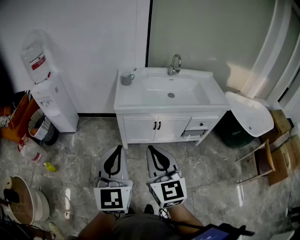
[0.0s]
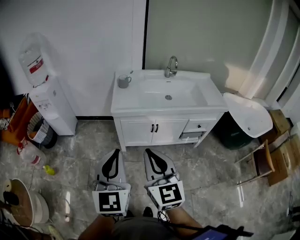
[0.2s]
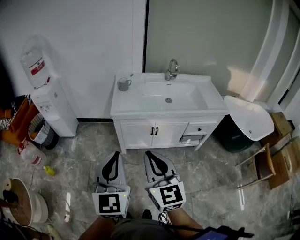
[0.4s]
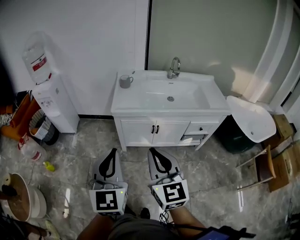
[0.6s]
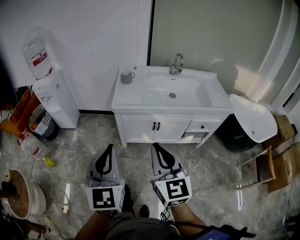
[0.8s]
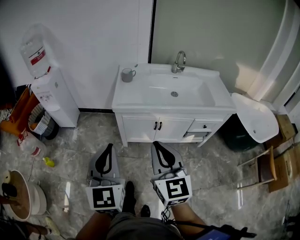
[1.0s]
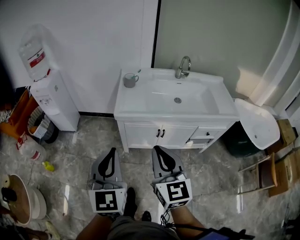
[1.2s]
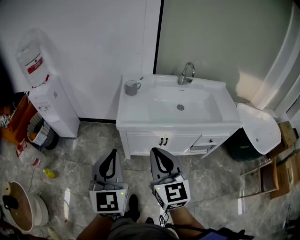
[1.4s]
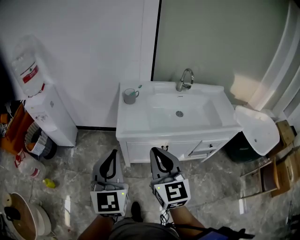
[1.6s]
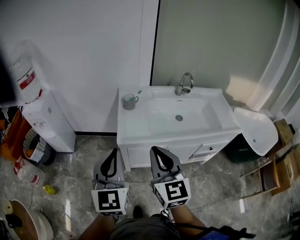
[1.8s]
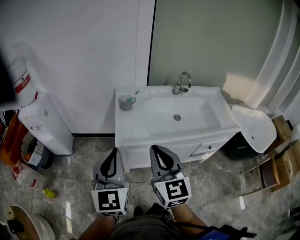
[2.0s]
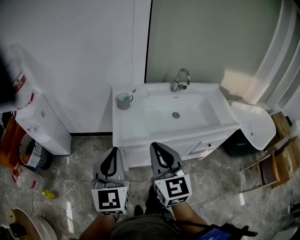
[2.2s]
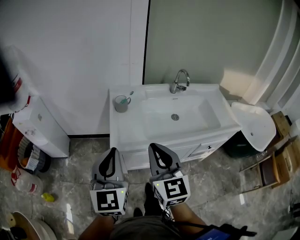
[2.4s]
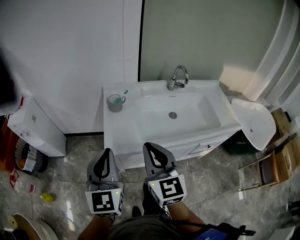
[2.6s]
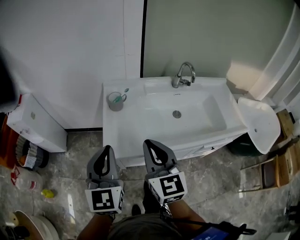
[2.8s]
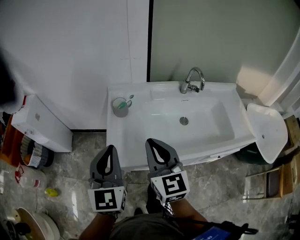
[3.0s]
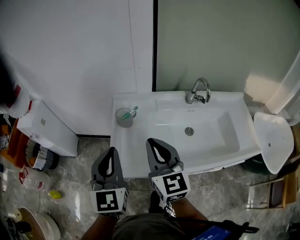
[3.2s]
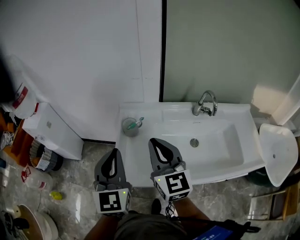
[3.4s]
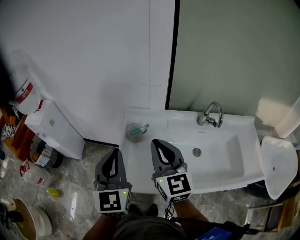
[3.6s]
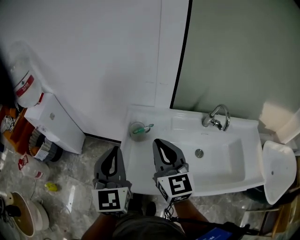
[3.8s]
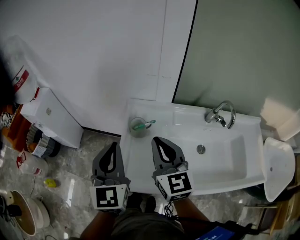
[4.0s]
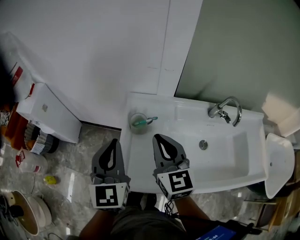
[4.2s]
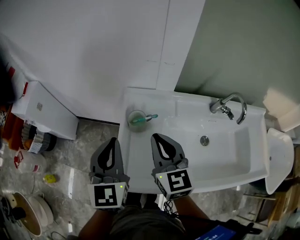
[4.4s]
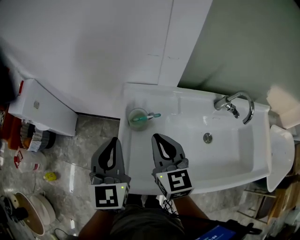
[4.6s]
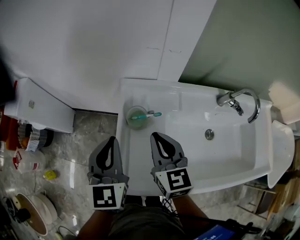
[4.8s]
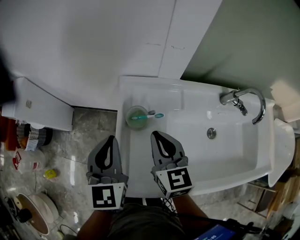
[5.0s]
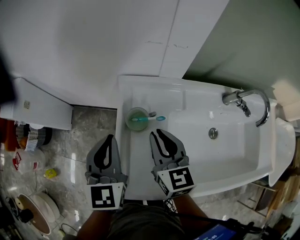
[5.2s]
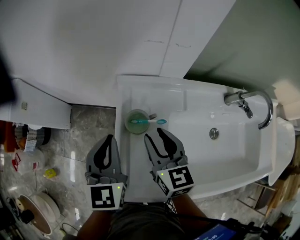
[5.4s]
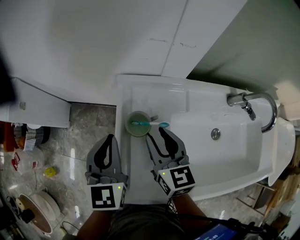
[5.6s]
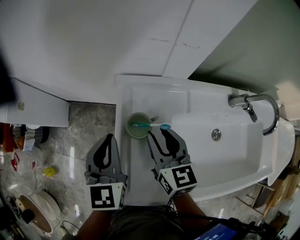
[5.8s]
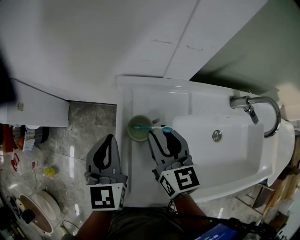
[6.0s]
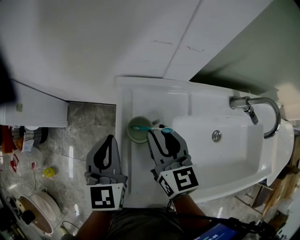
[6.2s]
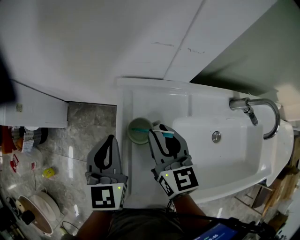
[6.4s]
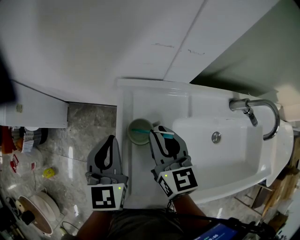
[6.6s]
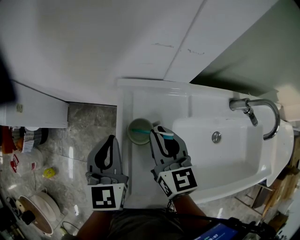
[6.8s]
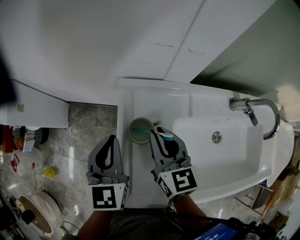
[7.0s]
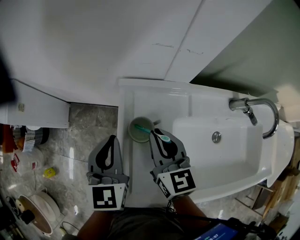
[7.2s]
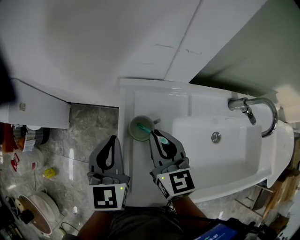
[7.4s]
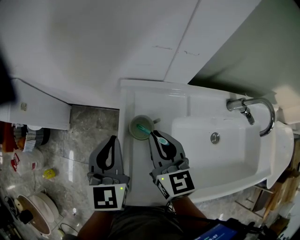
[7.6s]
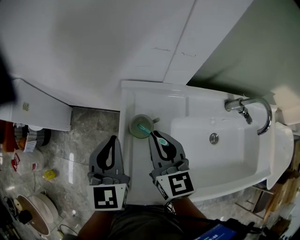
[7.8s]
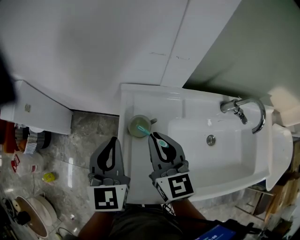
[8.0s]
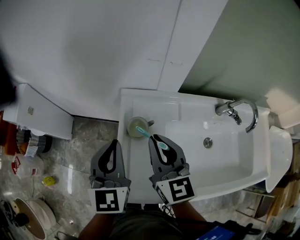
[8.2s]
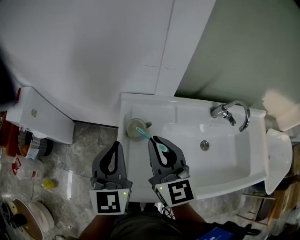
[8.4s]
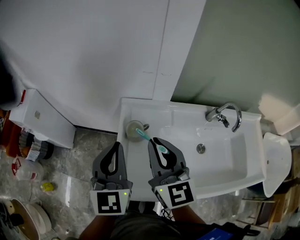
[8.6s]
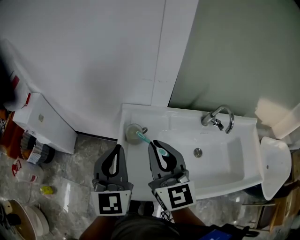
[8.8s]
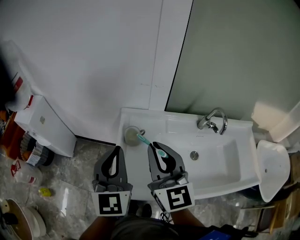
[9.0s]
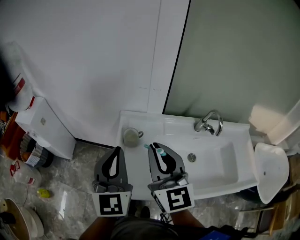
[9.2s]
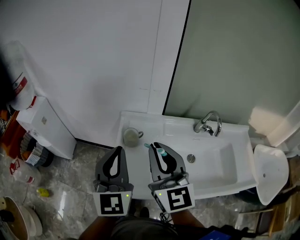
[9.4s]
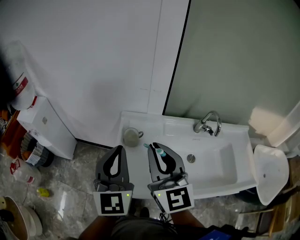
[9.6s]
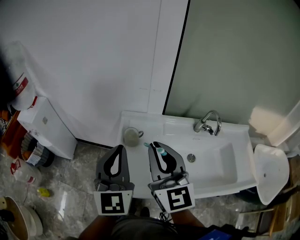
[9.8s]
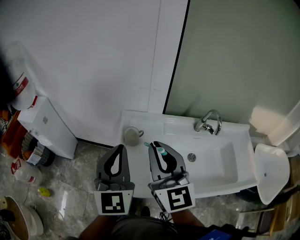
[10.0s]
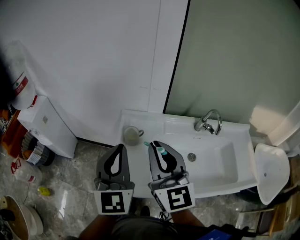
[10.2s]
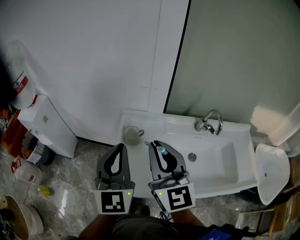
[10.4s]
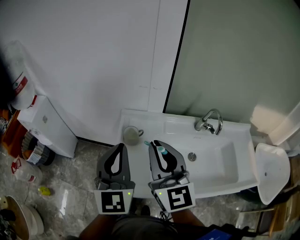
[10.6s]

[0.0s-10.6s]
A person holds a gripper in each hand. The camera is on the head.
0.0s to 1.6s: Both grippers move forward, about 20 cm.
1.6s to 3.0s: Both grippers move forward, approximately 25 cm.
3.0s to 4.6s: Both grippers move forward, some 20 cm.
4.6s to 6.0s: The grippers both shift forward and downward by roughly 10 cm. The right gripper opens its fingers.
6.0s to 7.6s: The right gripper closes its fingers.
7.6s to 9.0s: The grippers both shift upward and backward by roughly 25 cm. The left gripper changes its angle by some 20 degrees. Meanwhile the right gripper swivels about 30 degrees.
9.0s to 10.6s: The grippers make only small movements.

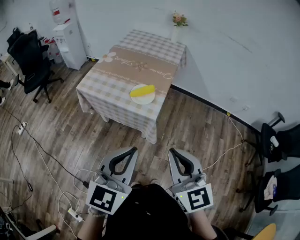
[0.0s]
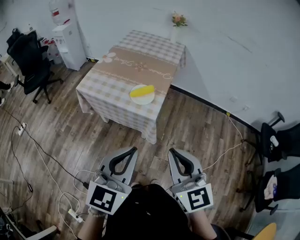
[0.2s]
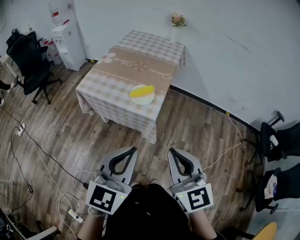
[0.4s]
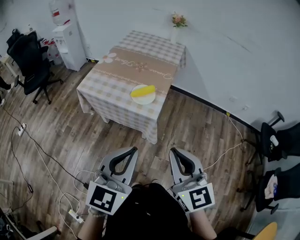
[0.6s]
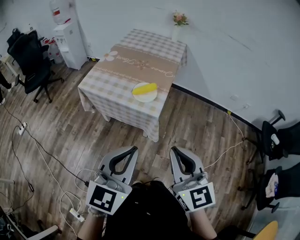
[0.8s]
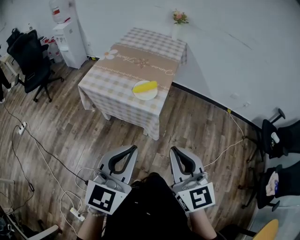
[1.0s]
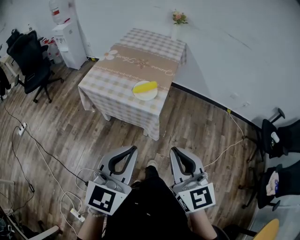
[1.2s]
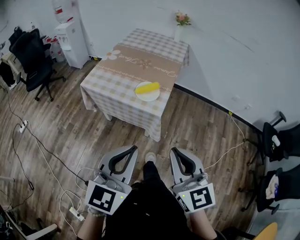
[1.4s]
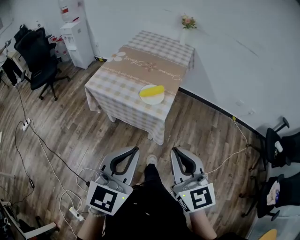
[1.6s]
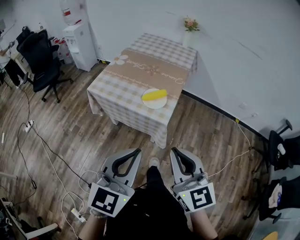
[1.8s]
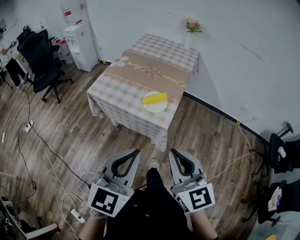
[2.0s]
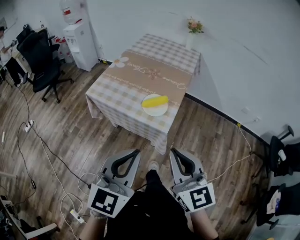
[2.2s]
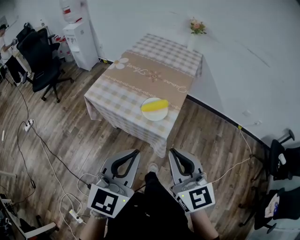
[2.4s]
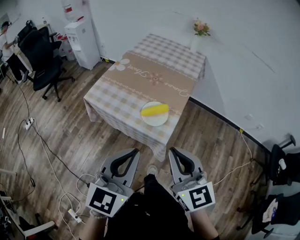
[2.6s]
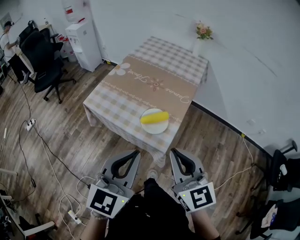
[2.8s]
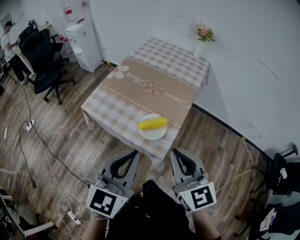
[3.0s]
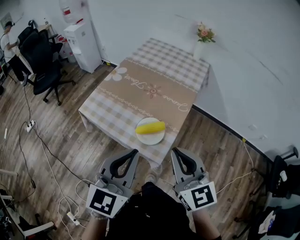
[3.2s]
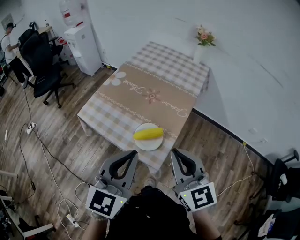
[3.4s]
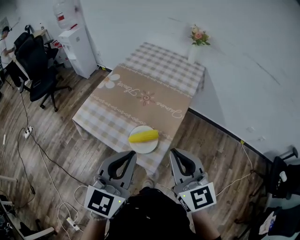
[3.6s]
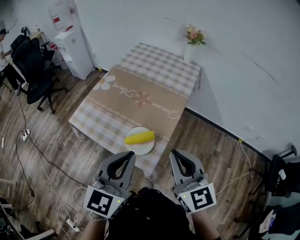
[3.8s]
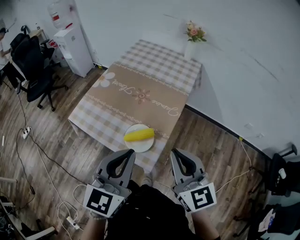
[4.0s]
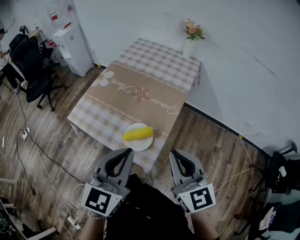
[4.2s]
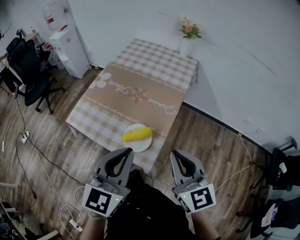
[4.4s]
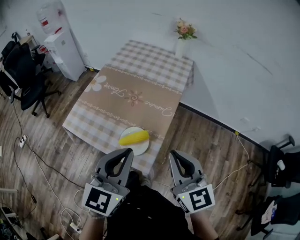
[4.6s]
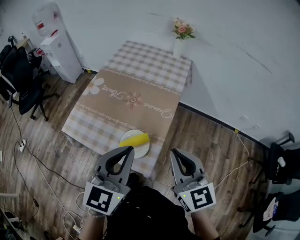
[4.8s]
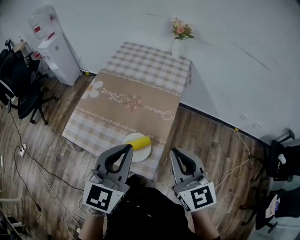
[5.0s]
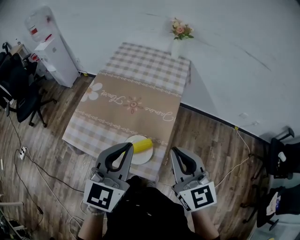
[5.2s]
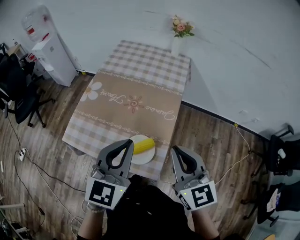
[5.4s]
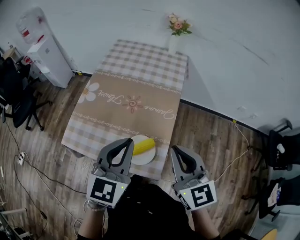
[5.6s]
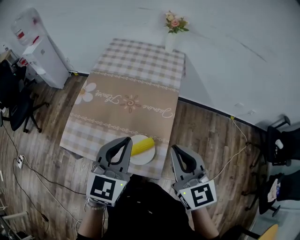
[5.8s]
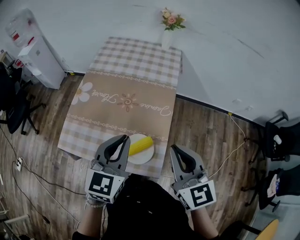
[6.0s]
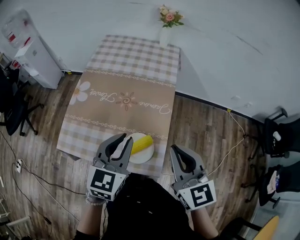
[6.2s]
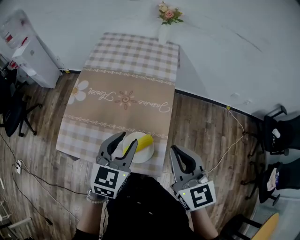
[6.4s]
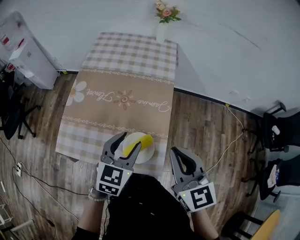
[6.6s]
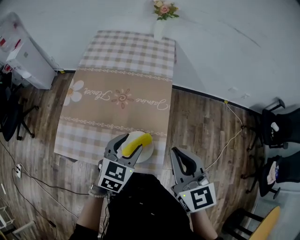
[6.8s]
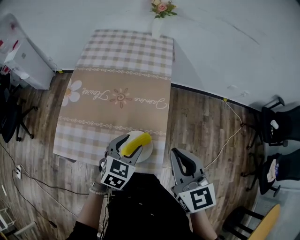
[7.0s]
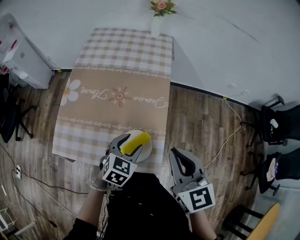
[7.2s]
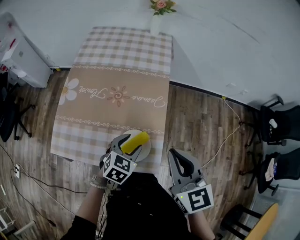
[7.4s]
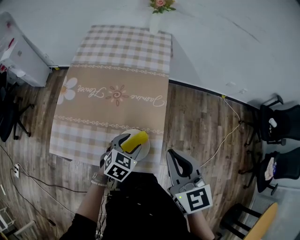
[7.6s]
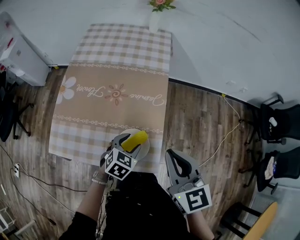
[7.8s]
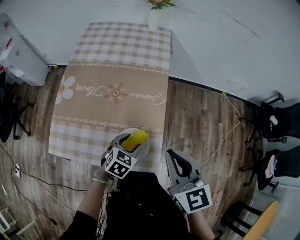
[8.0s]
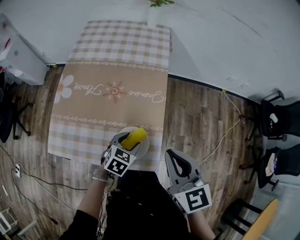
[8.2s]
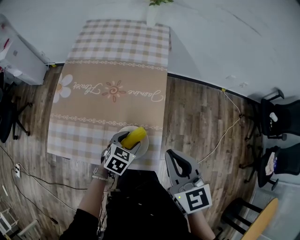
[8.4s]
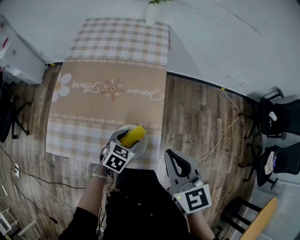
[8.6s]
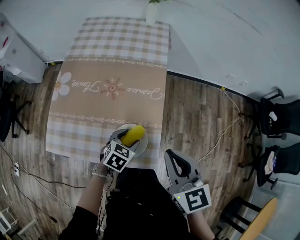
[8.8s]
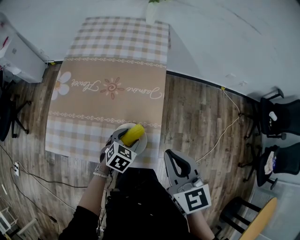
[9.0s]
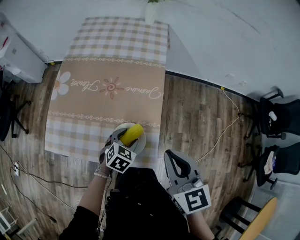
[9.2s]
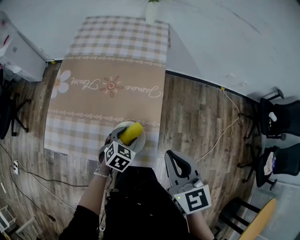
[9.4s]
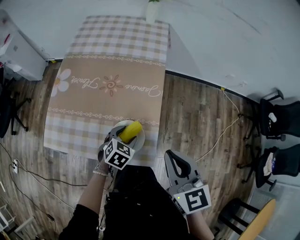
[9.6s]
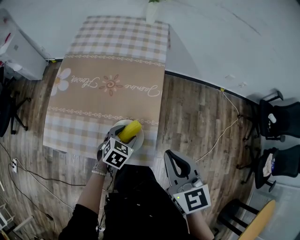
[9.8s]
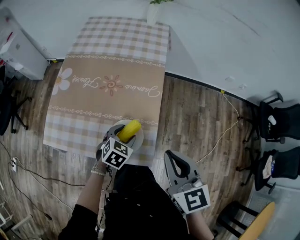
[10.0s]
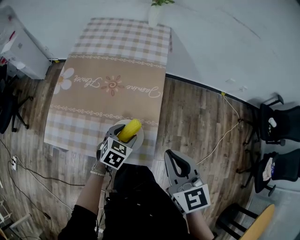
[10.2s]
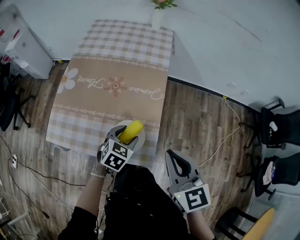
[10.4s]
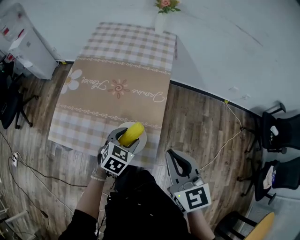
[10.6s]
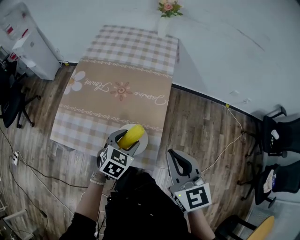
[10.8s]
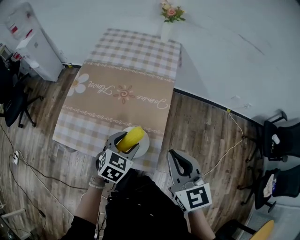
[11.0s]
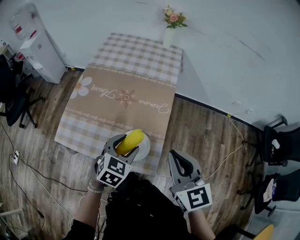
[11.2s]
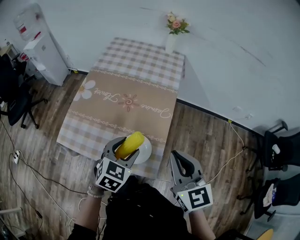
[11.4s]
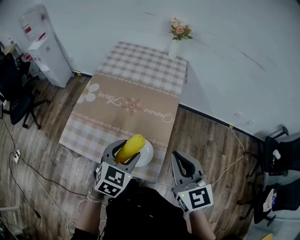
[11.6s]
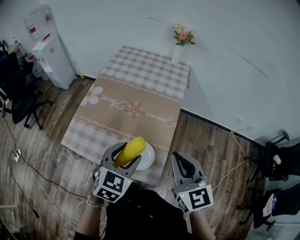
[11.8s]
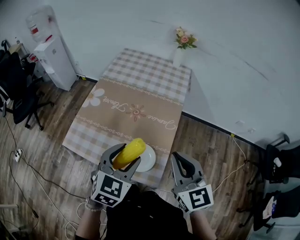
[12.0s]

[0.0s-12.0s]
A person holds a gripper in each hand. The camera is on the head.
0.0s to 1.6s: There are only small adjustments of the grippers.
1.6s to 3.0s: Both grippers move forward, approximately 25 cm.
3.0s to 4.4s: The left gripper travels forward and to the right by roughly 10 cm, while the right gripper heads to the right and forward, covering approximately 10 cm.
4.4s to 6.0s: The left gripper shifts some 15 cm forward and downward. The right gripper is displaced forward by roughly 10 cm.
6.0s to 7.6s: The left gripper shifts about 20 cm downward, changes its angle by some 40 degrees, and opens.
7.6s to 9.0s: The left gripper travels downward by some 5 cm.
9.0s to 10.4s: The grippers make only small movements.
10.4s to 12.0s: The right gripper goes some 5 cm upward; the left gripper shifts some 20 cm upward, and swivels about 20 degrees.

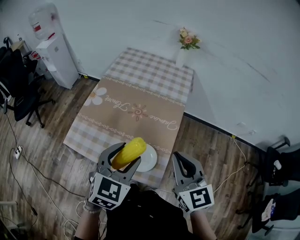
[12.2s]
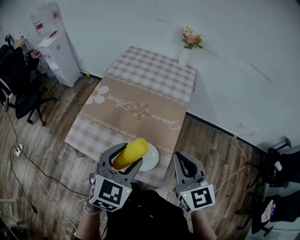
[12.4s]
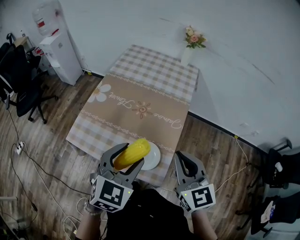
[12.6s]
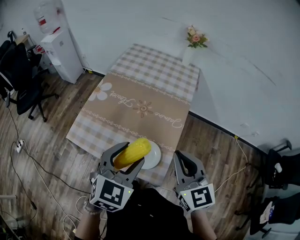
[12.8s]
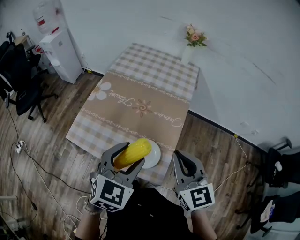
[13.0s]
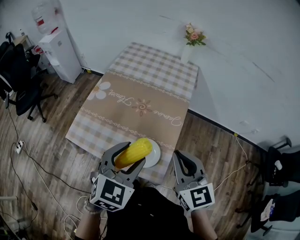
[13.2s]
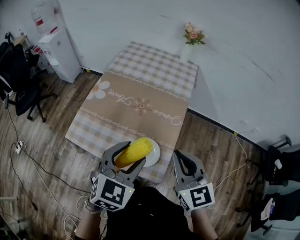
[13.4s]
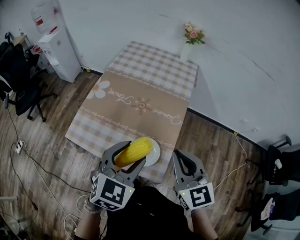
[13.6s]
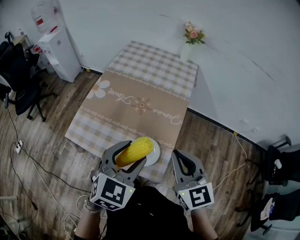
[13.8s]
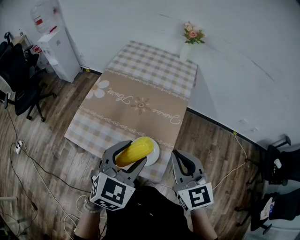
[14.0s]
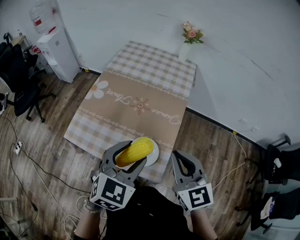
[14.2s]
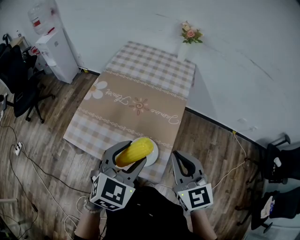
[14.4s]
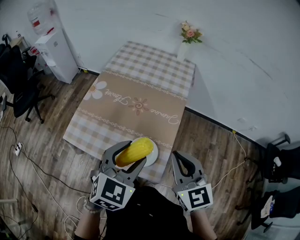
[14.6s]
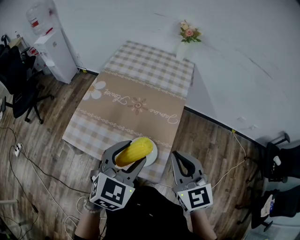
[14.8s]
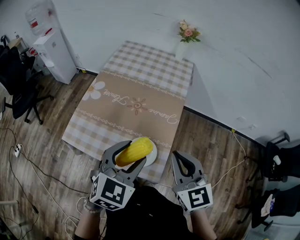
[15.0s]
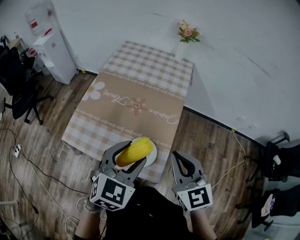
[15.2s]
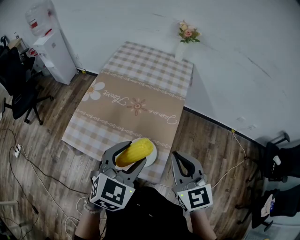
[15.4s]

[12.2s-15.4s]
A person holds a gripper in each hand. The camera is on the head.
12.2s to 15.4s: The grippers stay close to where they were, moving slightly.
